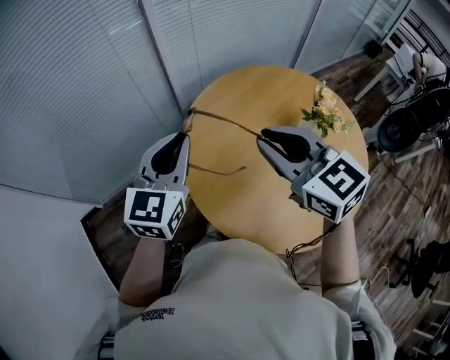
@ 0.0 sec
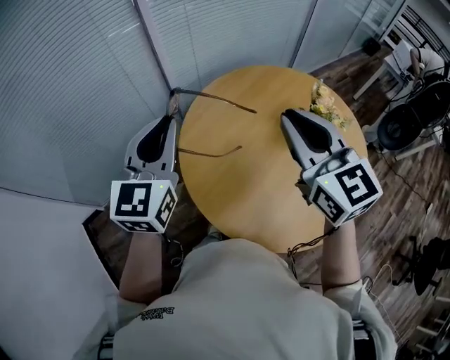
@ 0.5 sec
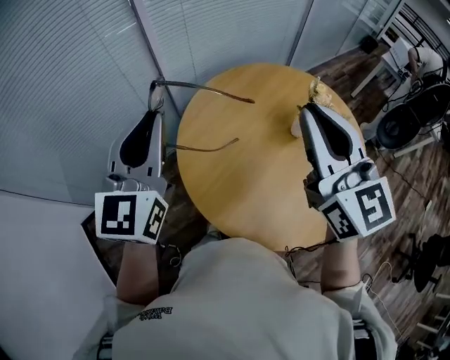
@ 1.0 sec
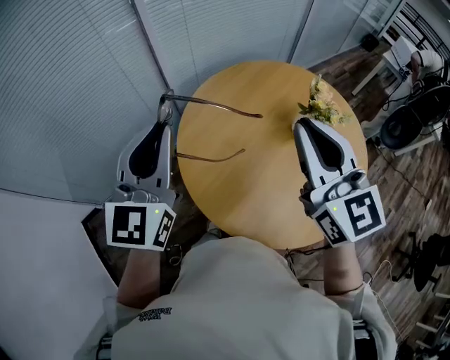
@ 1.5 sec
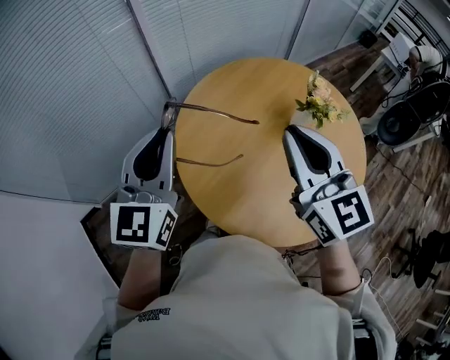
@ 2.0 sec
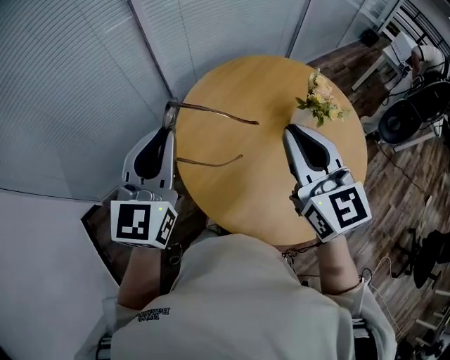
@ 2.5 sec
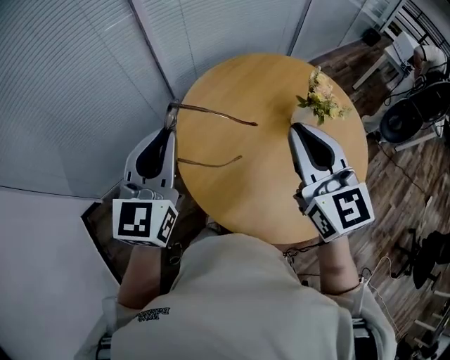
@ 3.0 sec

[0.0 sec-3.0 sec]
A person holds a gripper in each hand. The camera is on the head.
0.0 sec to 1.5 sec: The left gripper goes some 10 cm upward. The right gripper goes some 10 cm to the right and upward, and changes its angle by approximately 30 degrees.
1.5 sec to 3.0 sec: The two grippers go approximately 5 cm downward.

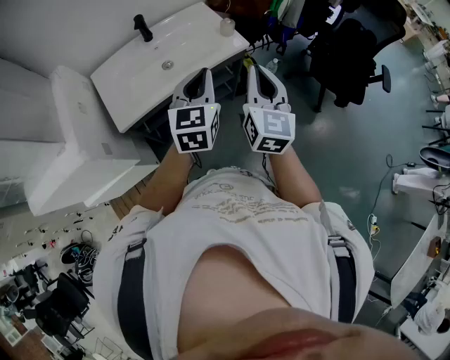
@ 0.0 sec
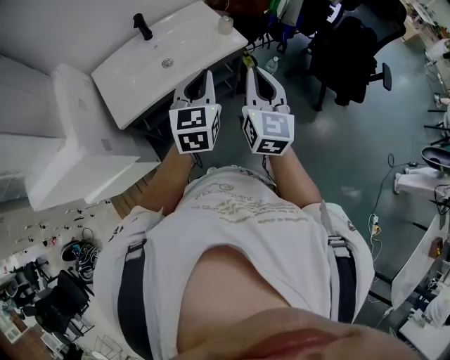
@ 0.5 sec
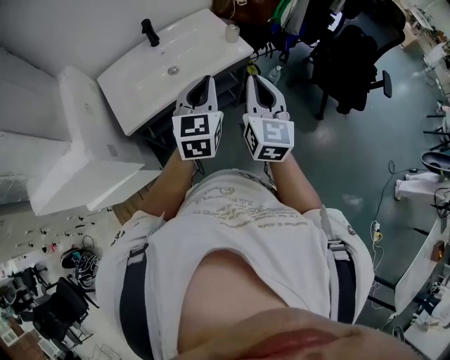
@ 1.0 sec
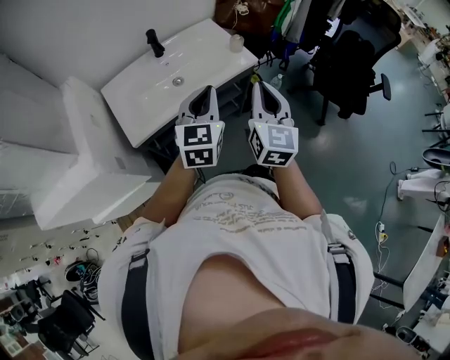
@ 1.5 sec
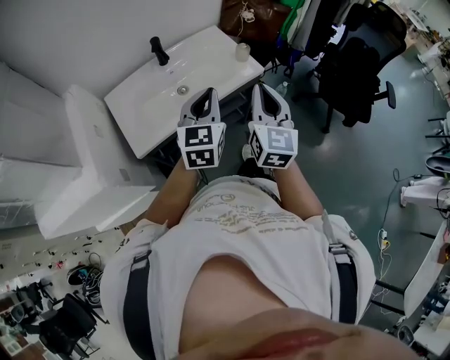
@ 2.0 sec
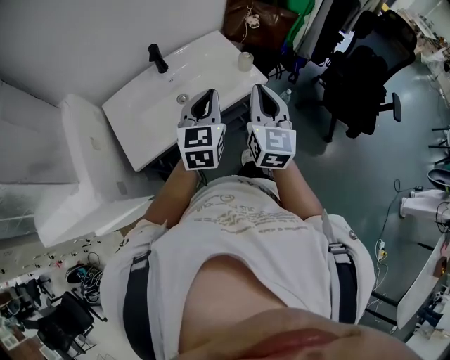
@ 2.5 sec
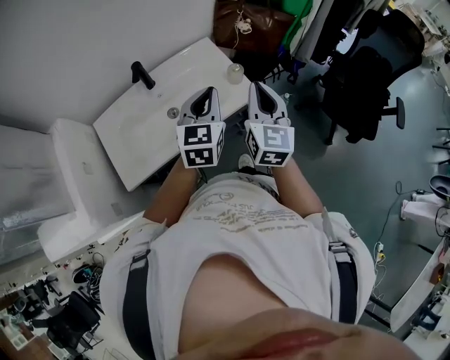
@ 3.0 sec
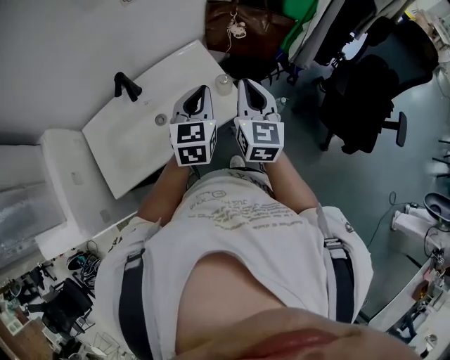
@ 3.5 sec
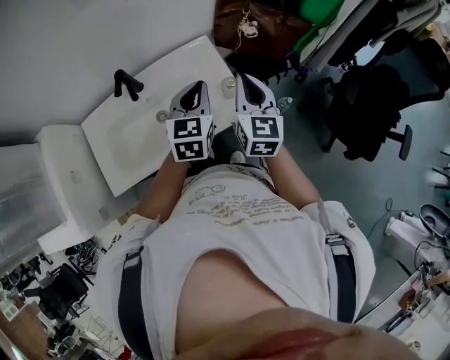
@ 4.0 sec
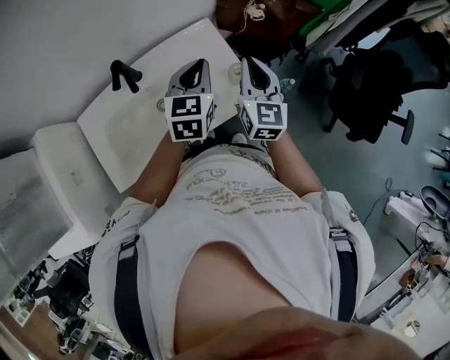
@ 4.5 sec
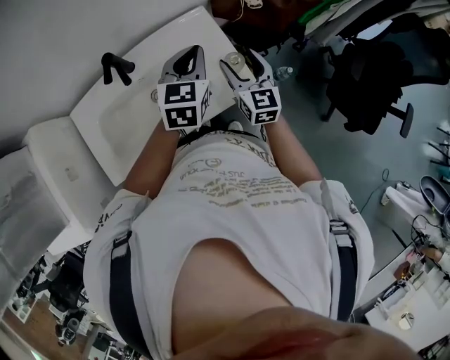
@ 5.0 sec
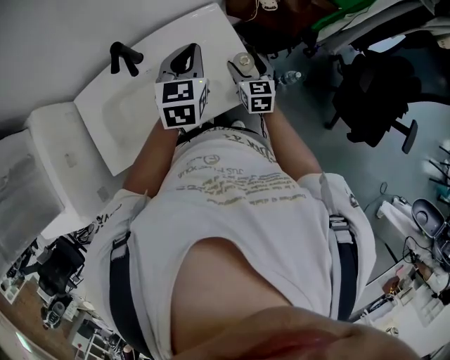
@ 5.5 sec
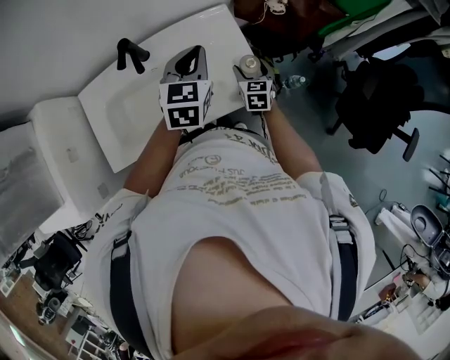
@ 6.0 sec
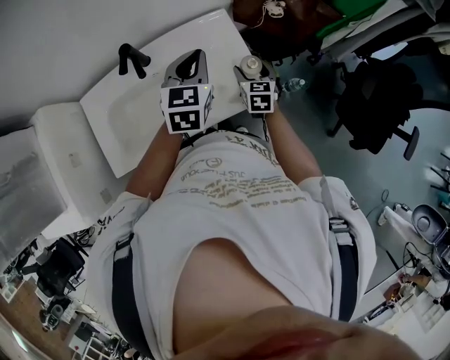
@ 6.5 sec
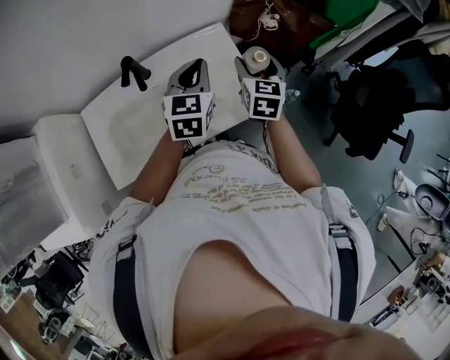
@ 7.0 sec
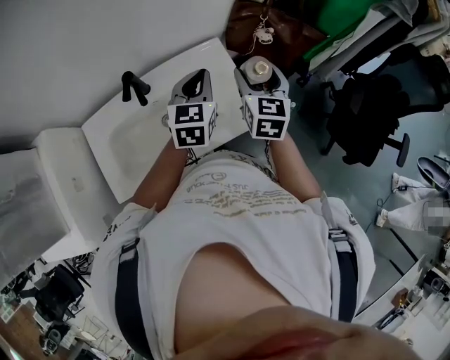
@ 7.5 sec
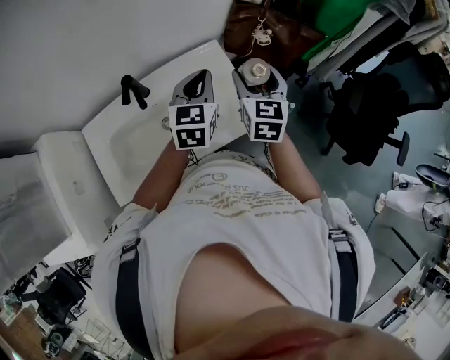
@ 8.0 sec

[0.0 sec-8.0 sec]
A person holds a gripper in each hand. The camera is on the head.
0.0 sec to 2.0 sec: Both grippers travel together to the left, some 5 cm.
2.0 sec to 4.0 sec: Both grippers travel together forward, roughly 30 cm.
4.0 sec to 6.0 sec: The left gripper moves to the left and forward, about 10 cm, while the right gripper travels downward by approximately 25 cm, turns by roughly 30 degrees, and opens up.
6.0 sec to 8.0 sec: The right gripper heads upward, covering about 25 cm.

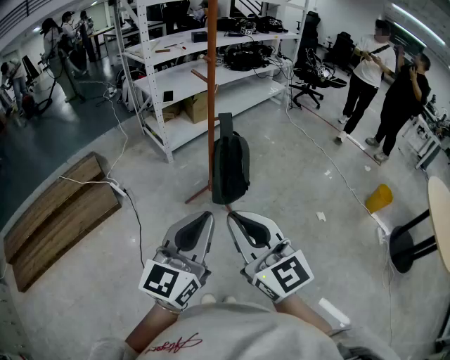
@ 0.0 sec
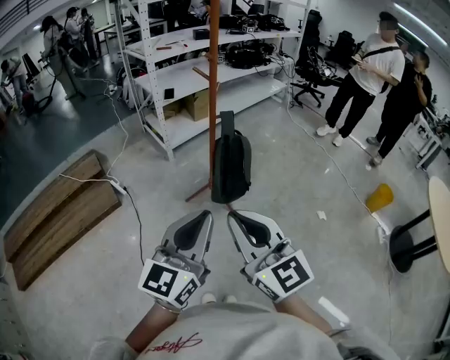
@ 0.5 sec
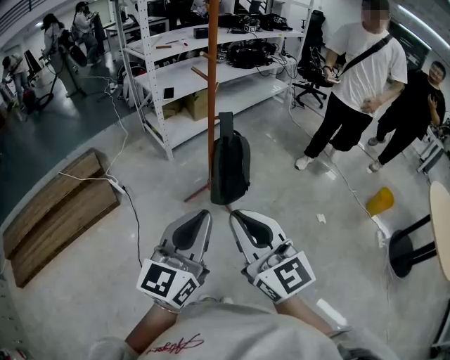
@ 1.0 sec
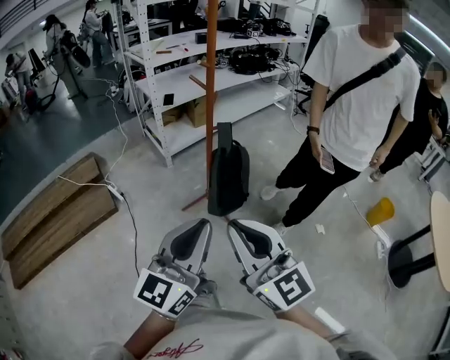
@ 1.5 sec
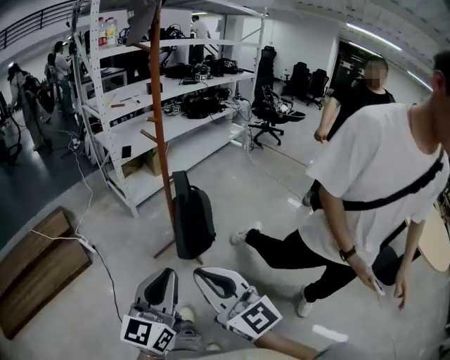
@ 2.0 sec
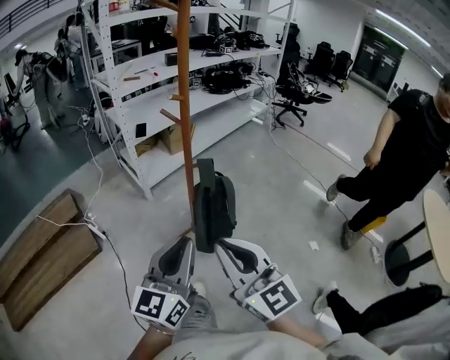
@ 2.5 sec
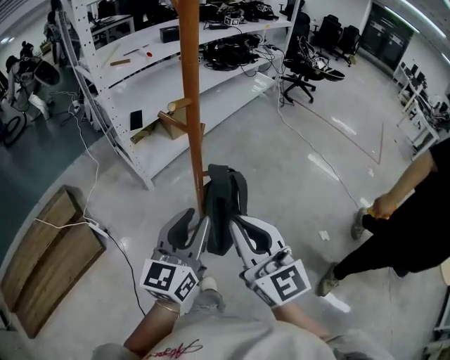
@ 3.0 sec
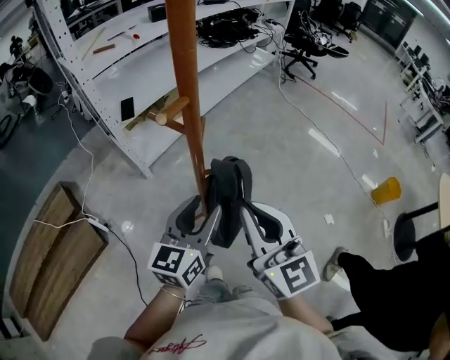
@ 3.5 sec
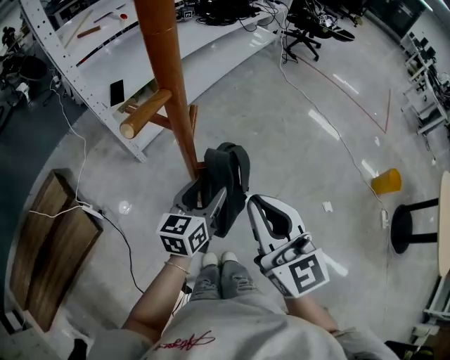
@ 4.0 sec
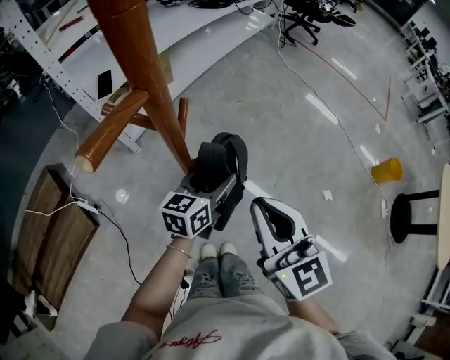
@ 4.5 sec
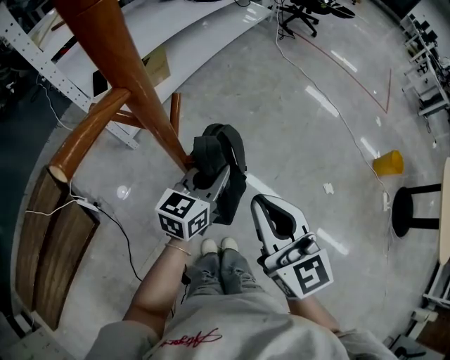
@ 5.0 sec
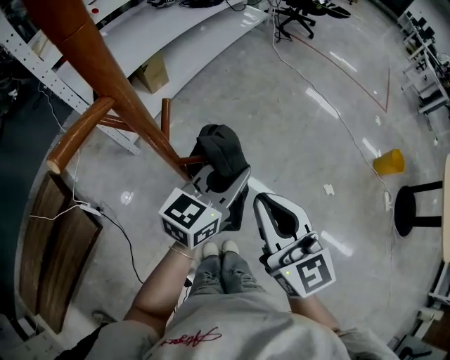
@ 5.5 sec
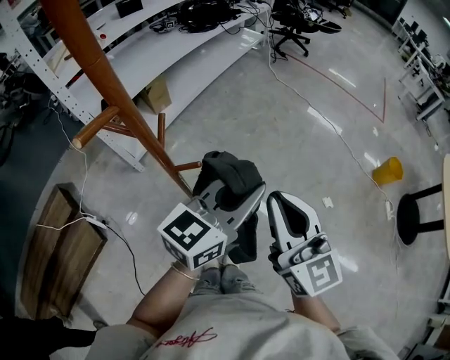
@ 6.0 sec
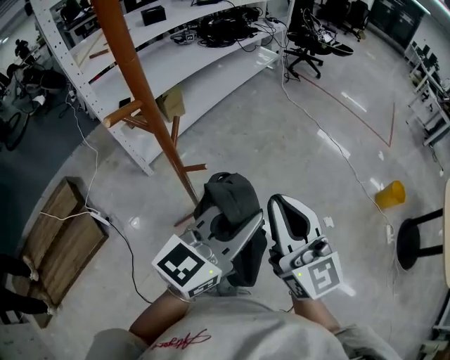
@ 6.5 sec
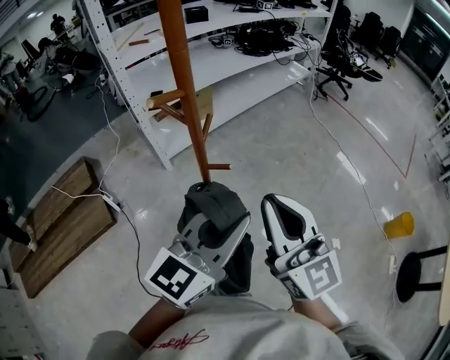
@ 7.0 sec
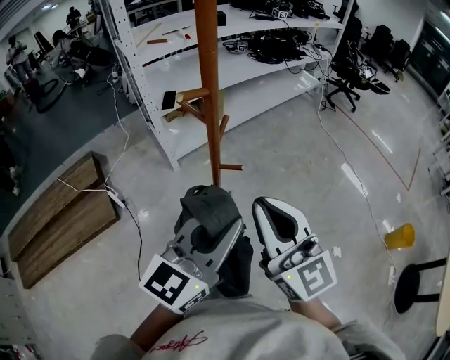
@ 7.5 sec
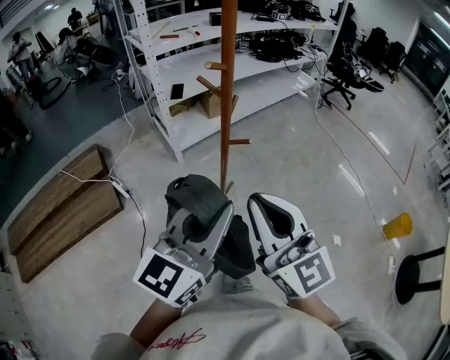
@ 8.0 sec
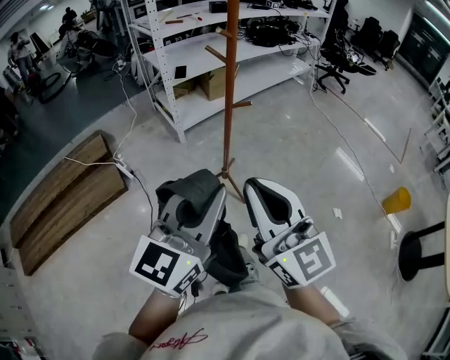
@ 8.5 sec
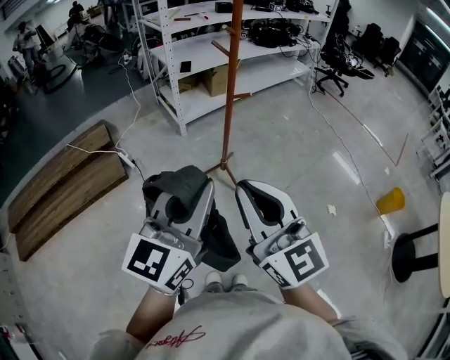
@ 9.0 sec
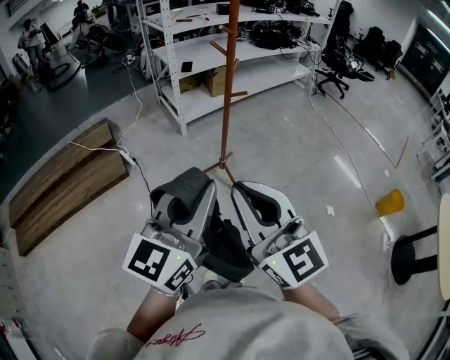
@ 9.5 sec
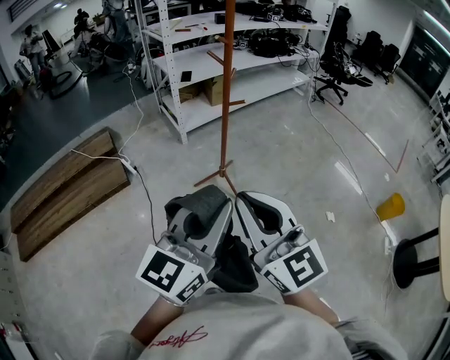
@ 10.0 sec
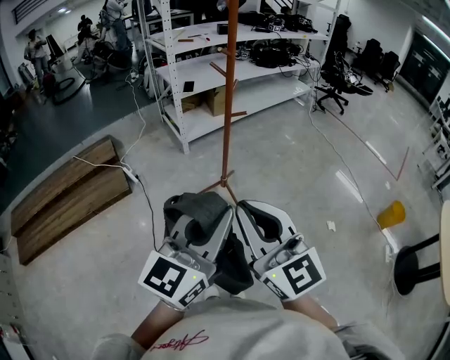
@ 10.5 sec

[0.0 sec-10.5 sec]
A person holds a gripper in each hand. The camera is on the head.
0.0 sec to 2.0 sec: The left gripper ends up roughly 5 cm from where it was. Meanwhile the right gripper changes place by roughly 5 cm.
2.0 sec to 4.0 sec: The two grippers travel together, forward, about 40 cm. The left gripper goes some 25 cm downward, turns by roughly 30 degrees, and opens.
4.0 sec to 6.5 sec: The left gripper goes about 25 cm upward, to the right and backward, turns by roughly 30 degrees, and closes its fingers. Meanwhile the right gripper moves to the right and upward, roughly 10 cm.
6.5 sec to 8.5 sec: The grippers both shift backward and to the left by roughly 30 cm. The left gripper swivels approximately 30 degrees.
8.5 sec to 10.5 sec: The two grippers go some 10 cm backward.

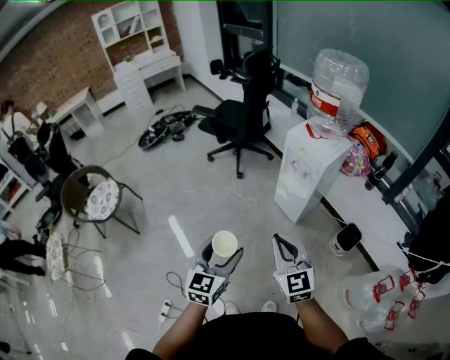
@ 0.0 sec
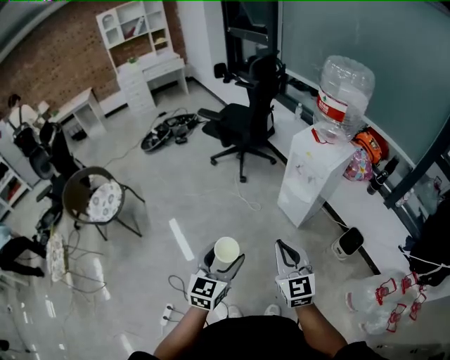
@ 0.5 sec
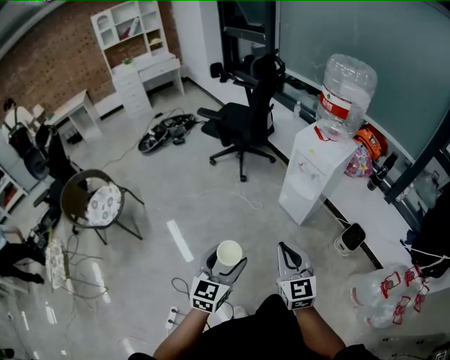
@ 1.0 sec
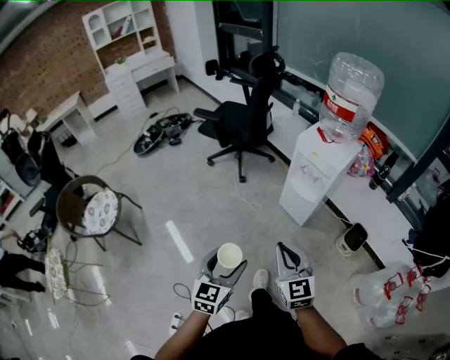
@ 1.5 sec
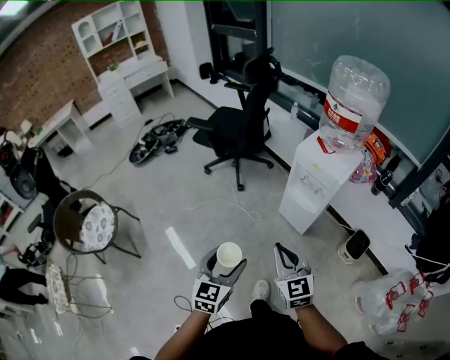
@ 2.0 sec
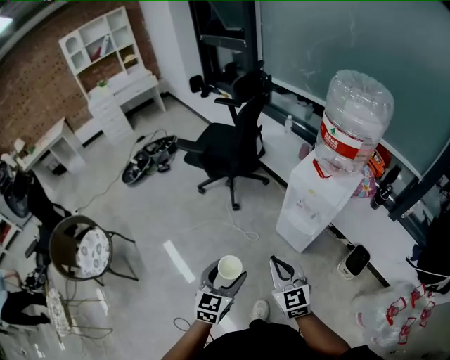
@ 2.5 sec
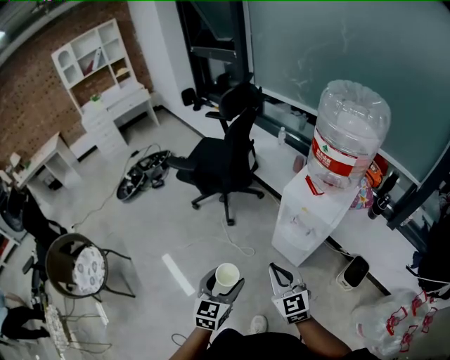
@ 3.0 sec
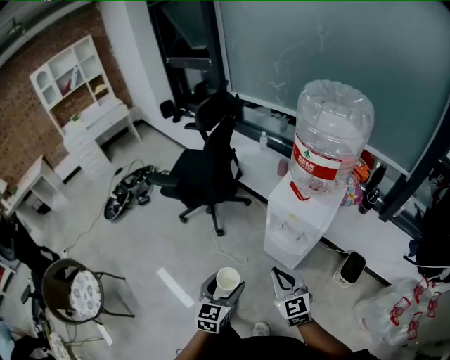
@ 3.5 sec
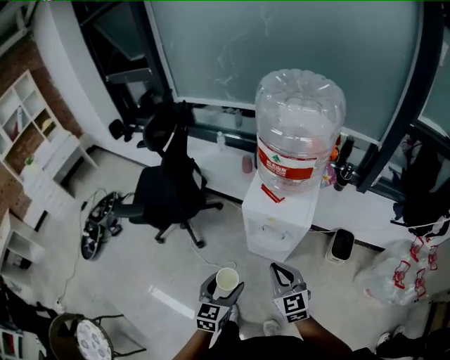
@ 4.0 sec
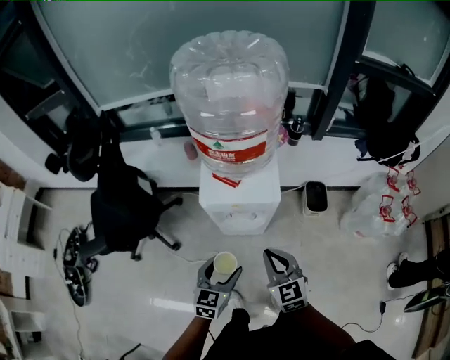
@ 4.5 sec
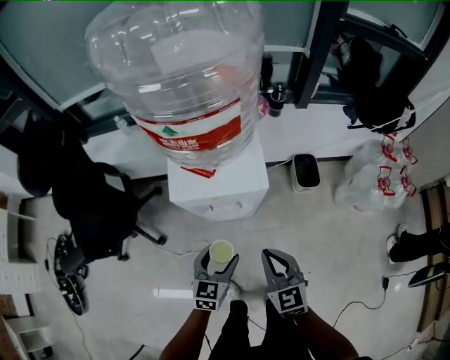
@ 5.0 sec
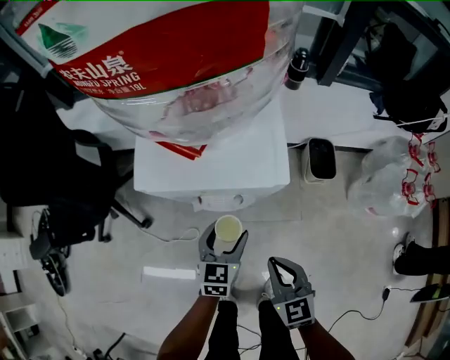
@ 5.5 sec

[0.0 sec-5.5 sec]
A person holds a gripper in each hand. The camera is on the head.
0.0 sec to 2.0 sec: The two grippers go approximately 15 cm forward and to the left.
2.0 sec to 3.5 sec: The right gripper goes about 20 cm forward and to the right. The left gripper heads forward, covering roughly 20 cm.
3.5 sec to 5.5 sec: The right gripper moves downward, some 25 cm, and changes its angle by roughly 40 degrees; the left gripper shifts by some 40 cm, and changes its angle by roughly 40 degrees.
